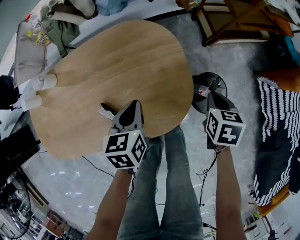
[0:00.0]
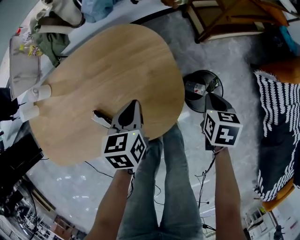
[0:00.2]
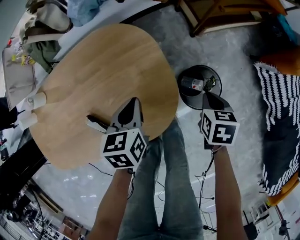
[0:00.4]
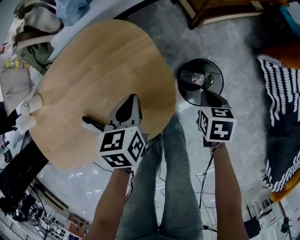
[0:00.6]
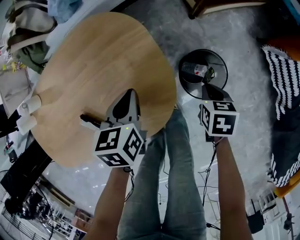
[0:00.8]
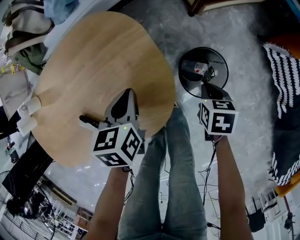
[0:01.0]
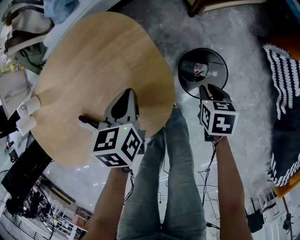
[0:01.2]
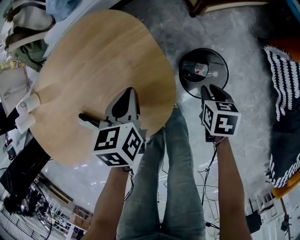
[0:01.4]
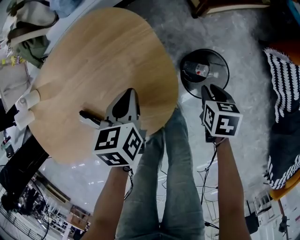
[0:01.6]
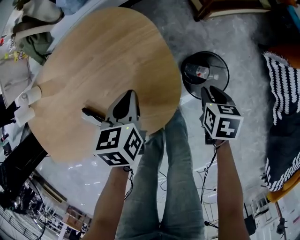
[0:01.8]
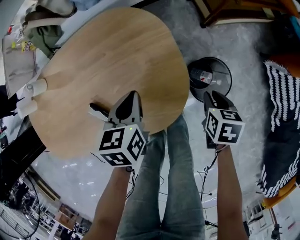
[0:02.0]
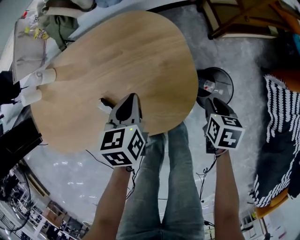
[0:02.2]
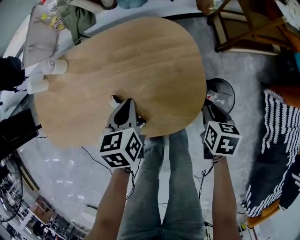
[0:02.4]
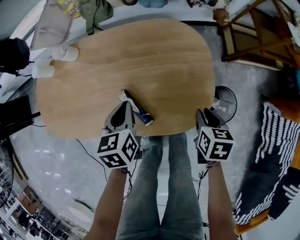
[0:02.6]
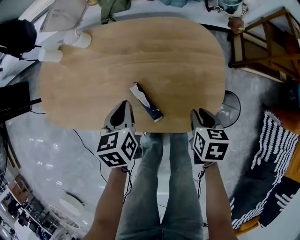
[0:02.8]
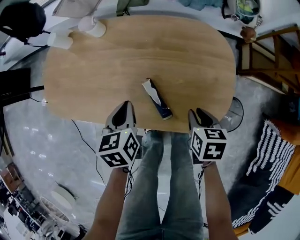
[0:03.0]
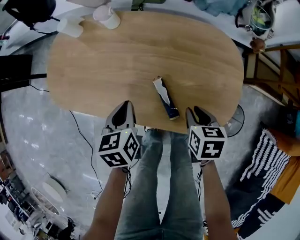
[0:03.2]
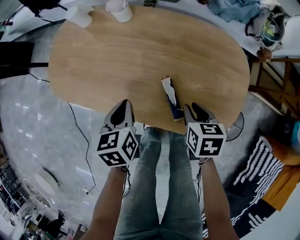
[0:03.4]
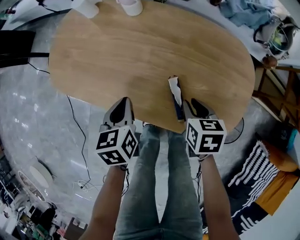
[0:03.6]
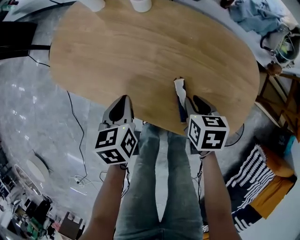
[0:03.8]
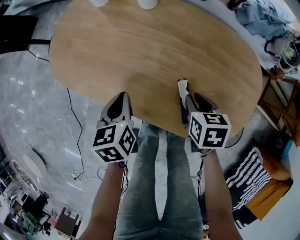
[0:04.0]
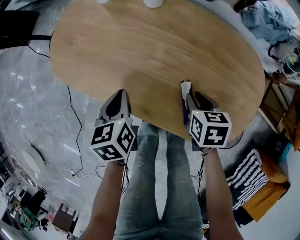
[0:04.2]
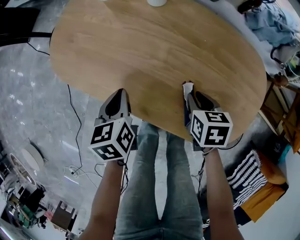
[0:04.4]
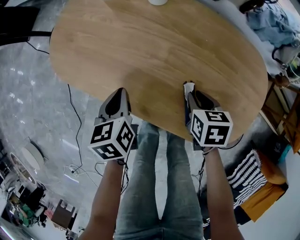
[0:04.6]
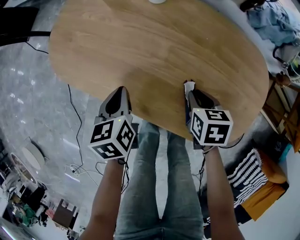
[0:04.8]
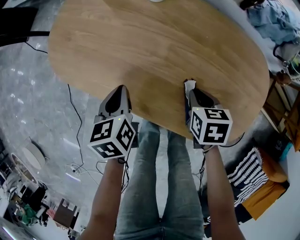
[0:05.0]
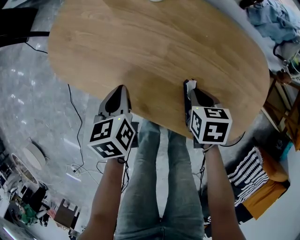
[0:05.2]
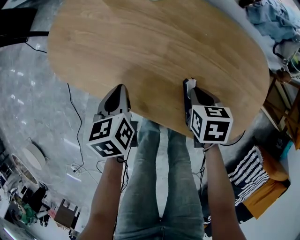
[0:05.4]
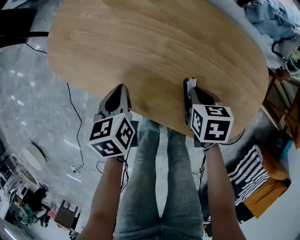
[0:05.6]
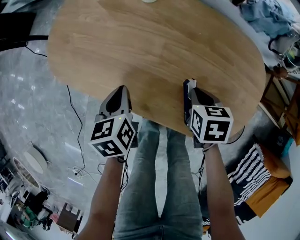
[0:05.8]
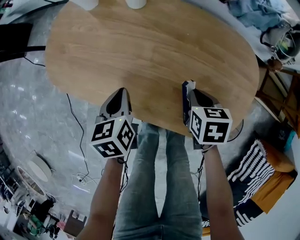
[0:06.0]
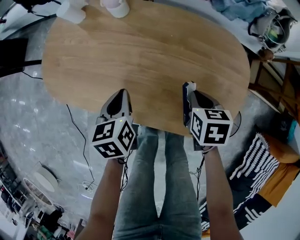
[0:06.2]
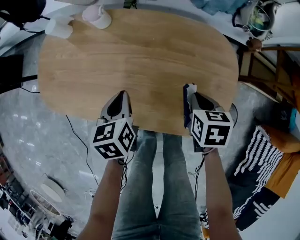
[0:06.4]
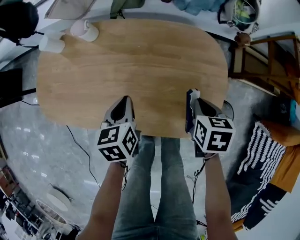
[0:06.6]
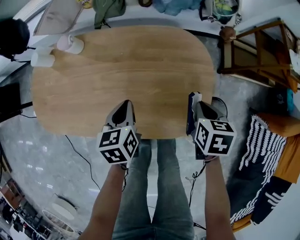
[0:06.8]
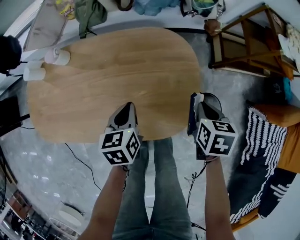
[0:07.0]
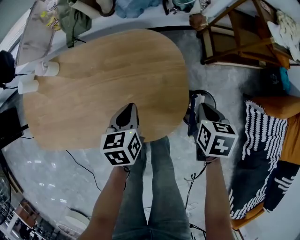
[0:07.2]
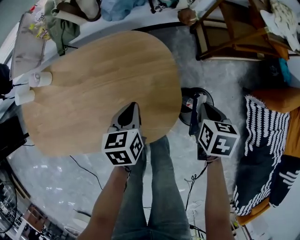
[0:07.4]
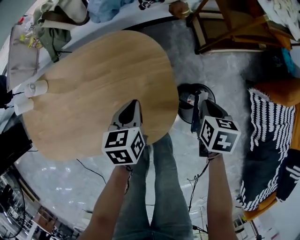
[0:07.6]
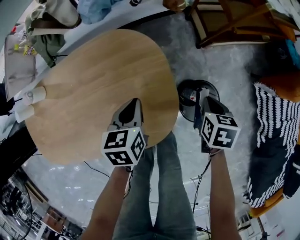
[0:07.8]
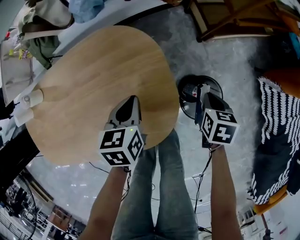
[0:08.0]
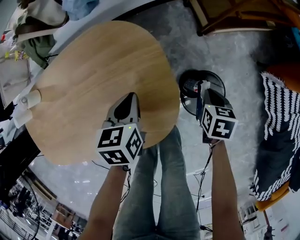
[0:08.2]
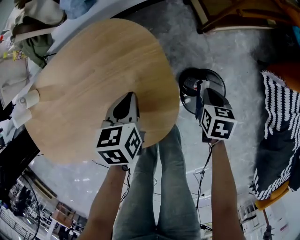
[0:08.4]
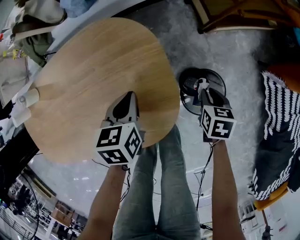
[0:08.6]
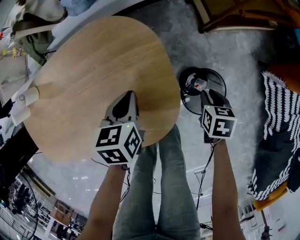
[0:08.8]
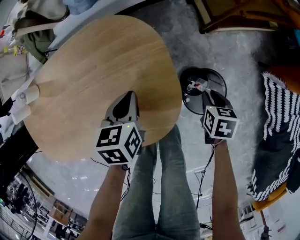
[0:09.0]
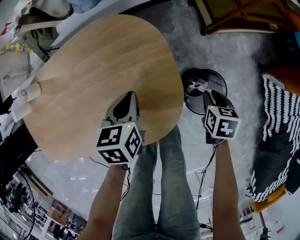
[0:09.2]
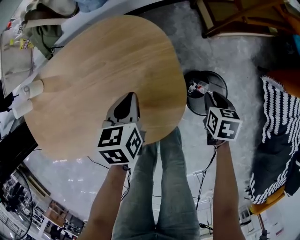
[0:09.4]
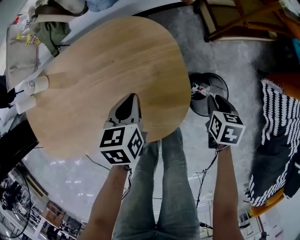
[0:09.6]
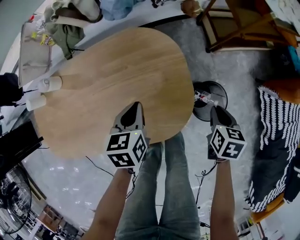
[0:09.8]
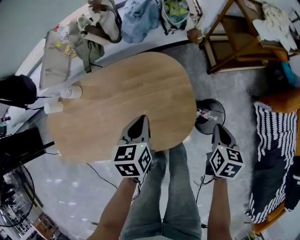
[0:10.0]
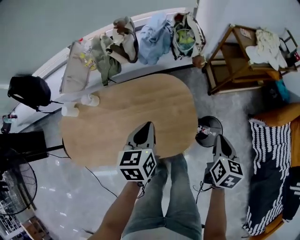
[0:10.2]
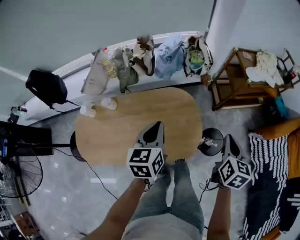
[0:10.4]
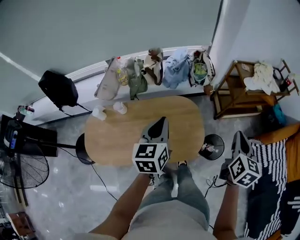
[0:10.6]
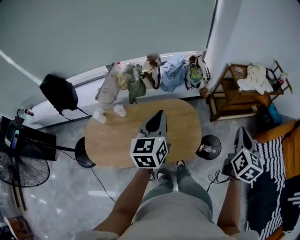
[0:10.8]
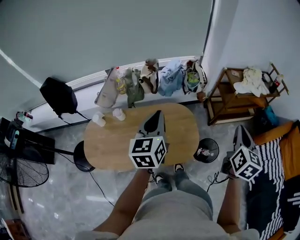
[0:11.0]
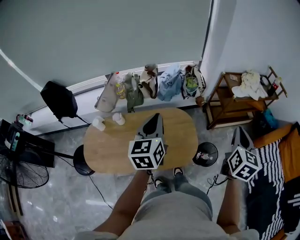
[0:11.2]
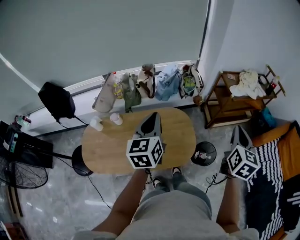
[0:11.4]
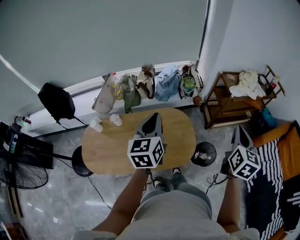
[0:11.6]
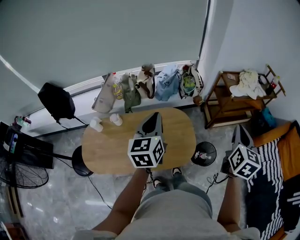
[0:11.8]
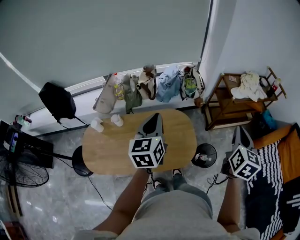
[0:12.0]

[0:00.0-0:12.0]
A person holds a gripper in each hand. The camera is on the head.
0:00.0 to 0:01.6: The right gripper travels downward and to the right by about 15 cm, and opens up; the left gripper heads to the right and downward, covering about 10 cm.
0:01.6 to 0:03.0: The left gripper moves some 30 cm, and rotates approximately 30 degrees; the right gripper ends up approximately 30 cm from where it was, and swivels about 30 degrees.
0:03.0 to 0:04.4: The left gripper travels to the left by approximately 15 cm, and turns by approximately 20 degrees. The right gripper heads forward and to the left, covering roughly 15 cm, and swivels roughly 20 degrees.
0:04.4 to 0:06.0: The grippers make only small movements.
0:06.0 to 0:07.6: The left gripper changes place by about 40 cm, and swivels about 40 degrees. The right gripper changes place by roughly 40 cm, and changes its angle by some 40 degrees.
0:07.6 to 0:09.0: The right gripper travels downward by approximately 10 cm, and opens up.
0:09.0 to 0:10.4: The grippers both shift upward by roughly 40 cm. The left gripper turns by approximately 30 degrees. Meanwhile the right gripper angles its fingers upward, by some 30 degrees, and closes up.
0:10.4 to 0:12.0: Both grippers move upward, some 15 cm.

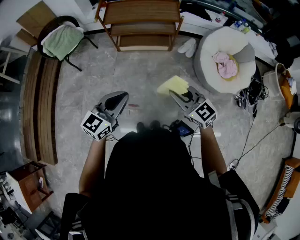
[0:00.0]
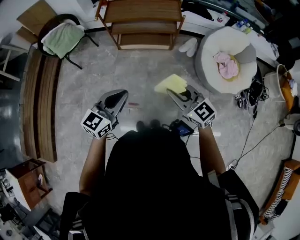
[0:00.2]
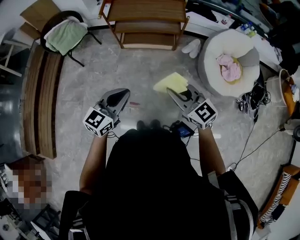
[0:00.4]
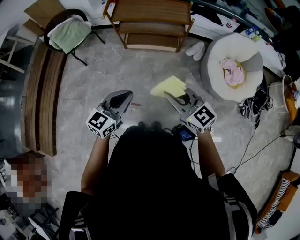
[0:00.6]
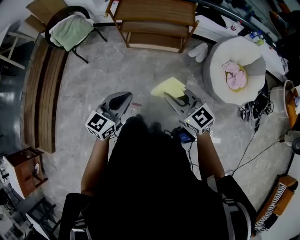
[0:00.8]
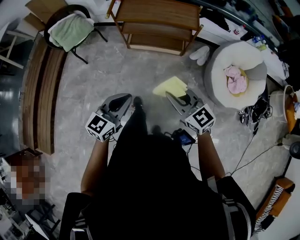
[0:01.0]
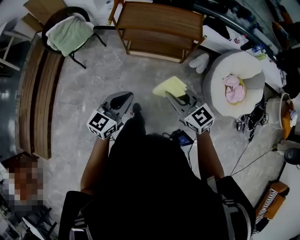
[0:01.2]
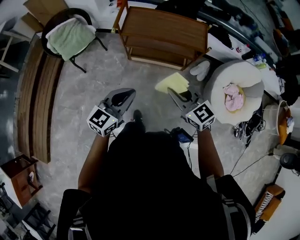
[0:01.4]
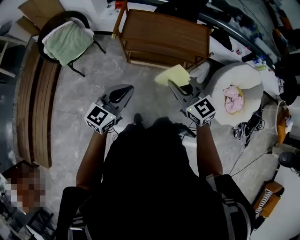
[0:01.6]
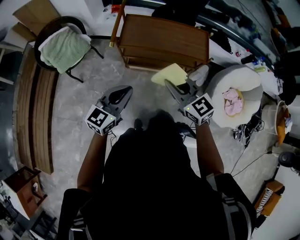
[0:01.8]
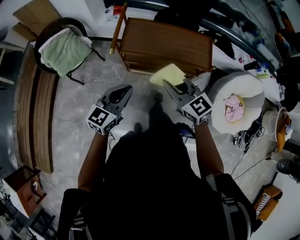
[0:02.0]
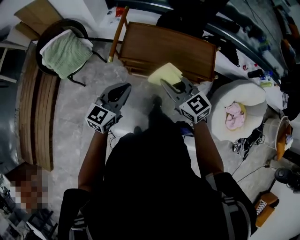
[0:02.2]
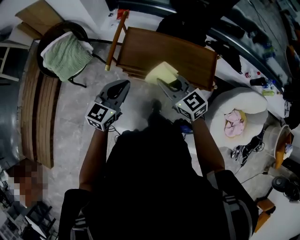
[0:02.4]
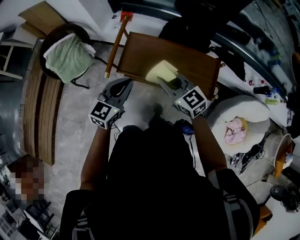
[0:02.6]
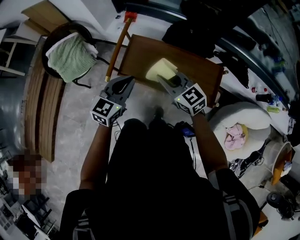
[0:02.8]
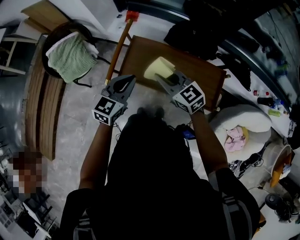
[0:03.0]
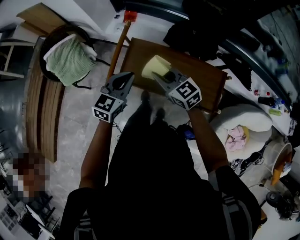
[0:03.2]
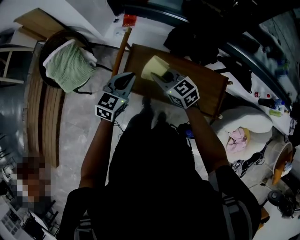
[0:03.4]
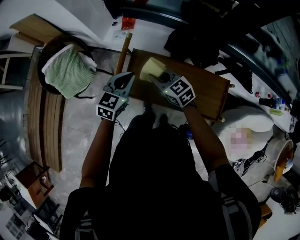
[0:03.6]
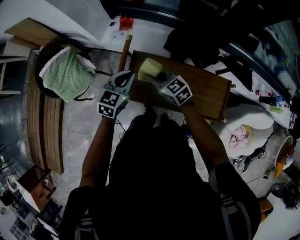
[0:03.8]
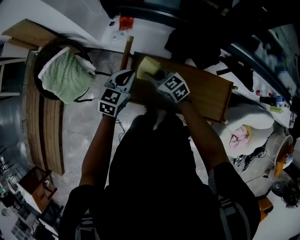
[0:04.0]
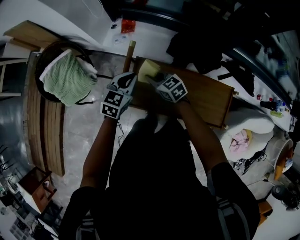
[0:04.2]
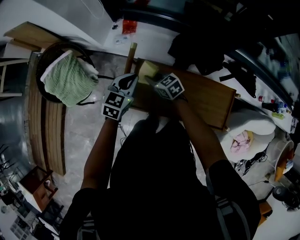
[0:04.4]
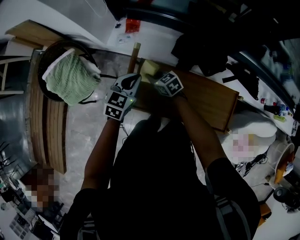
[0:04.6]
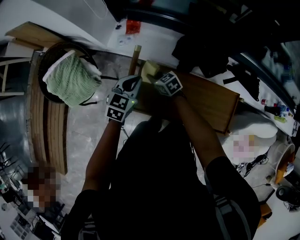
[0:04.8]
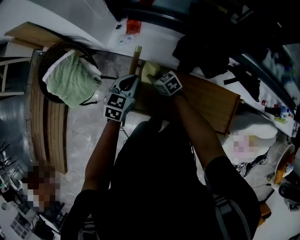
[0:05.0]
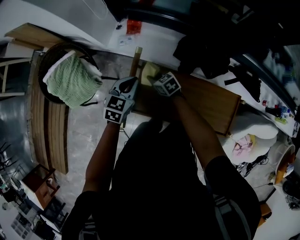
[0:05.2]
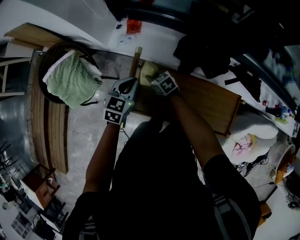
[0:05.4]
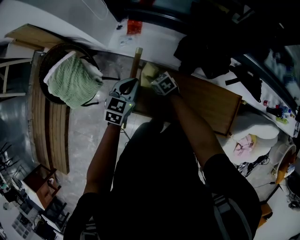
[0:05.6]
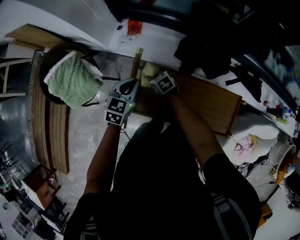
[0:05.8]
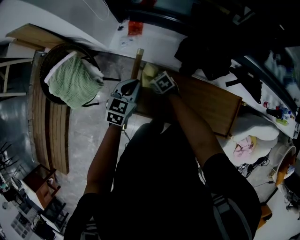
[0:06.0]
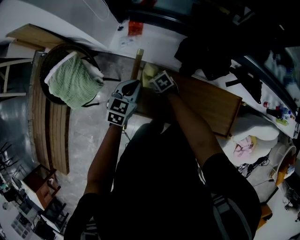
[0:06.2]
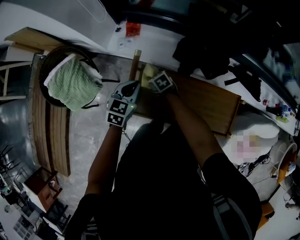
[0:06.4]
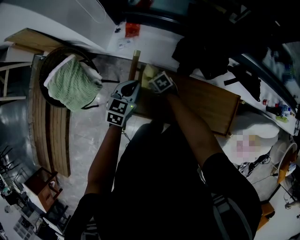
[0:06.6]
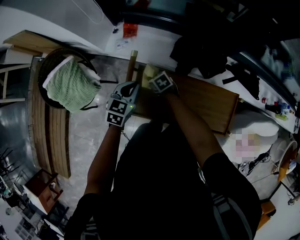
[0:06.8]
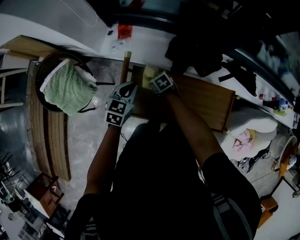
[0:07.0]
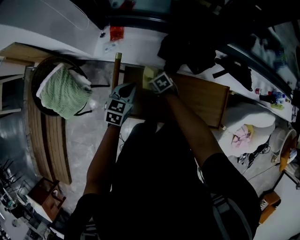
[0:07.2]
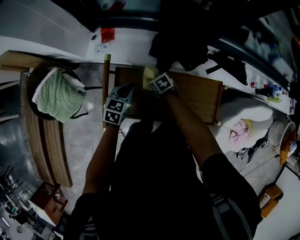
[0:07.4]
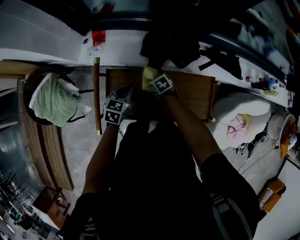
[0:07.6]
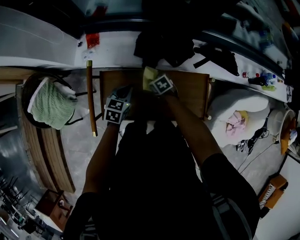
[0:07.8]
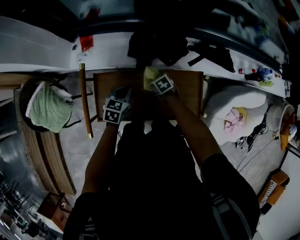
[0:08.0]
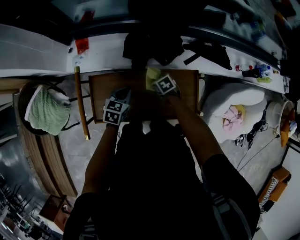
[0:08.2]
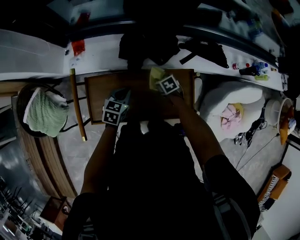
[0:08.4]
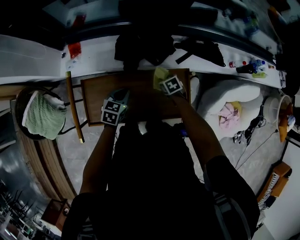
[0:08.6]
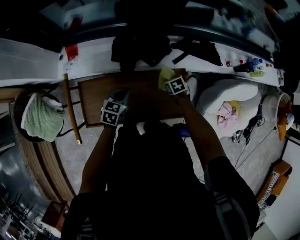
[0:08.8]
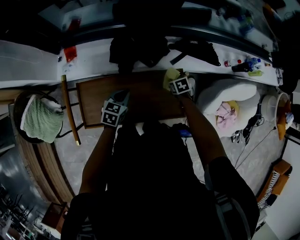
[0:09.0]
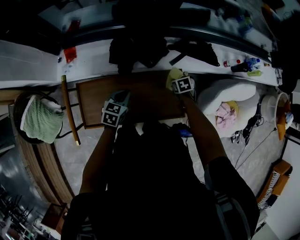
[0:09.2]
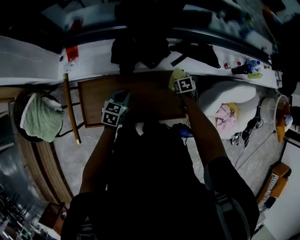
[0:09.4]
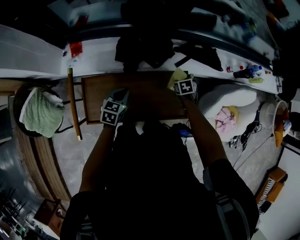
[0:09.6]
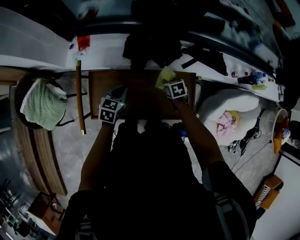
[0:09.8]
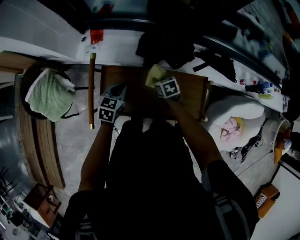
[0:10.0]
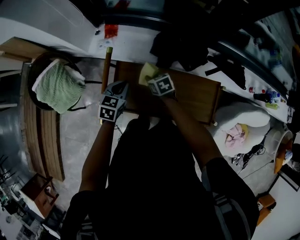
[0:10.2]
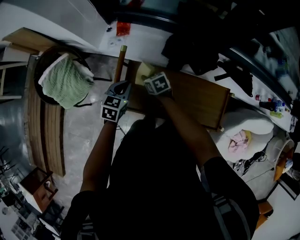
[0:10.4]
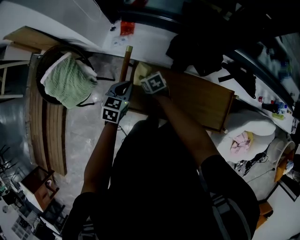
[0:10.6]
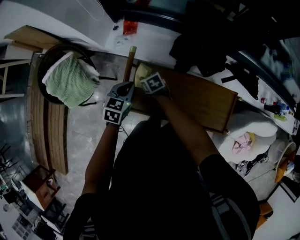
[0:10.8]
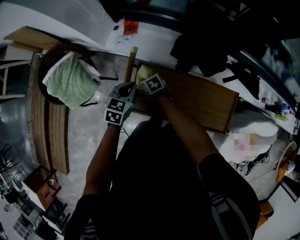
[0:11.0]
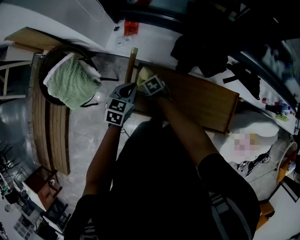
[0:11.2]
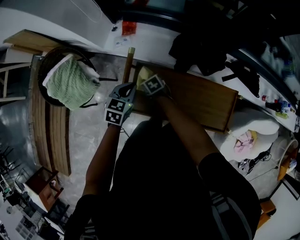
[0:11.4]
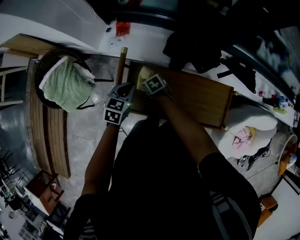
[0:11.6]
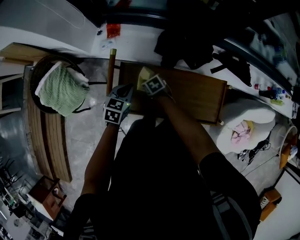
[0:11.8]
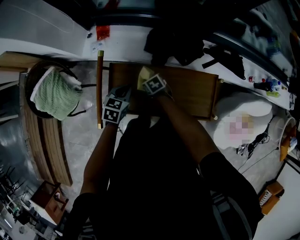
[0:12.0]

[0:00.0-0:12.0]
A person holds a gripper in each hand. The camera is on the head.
0:00.0 to 0:01.6: The grippers both shift forward by roughly 30 cm.
0:01.6 to 0:03.0: The two grippers go some 35 cm forward. The left gripper rotates roughly 20 degrees.
0:03.0 to 0:04.4: Both grippers move forward and downward, about 25 cm. The right gripper changes its angle by some 20 degrees.
0:04.4 to 0:06.0: The right gripper heads downward, covering approximately 10 cm.
0:06.0 to 0:07.6: The left gripper shifts roughly 15 cm to the right. Meanwhile the right gripper travels to the right and backward by about 20 cm.
0:07.6 to 0:09.0: The left gripper heads to the right, covering roughly 15 cm. Meanwhile the right gripper shifts about 30 cm to the right, and changes its angle by roughly 20 degrees.
0:09.0 to 0:10.4: The left gripper ends up approximately 25 cm from where it was, and rotates some 20 degrees, while the right gripper moves approximately 50 cm, and rotates some 30 degrees.
0:10.4 to 0:12.0: The right gripper goes about 10 cm to the right and downward, while the left gripper moves to the right, some 5 cm.
